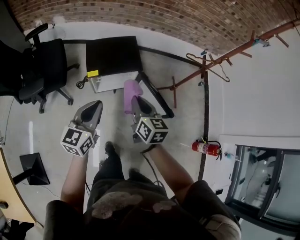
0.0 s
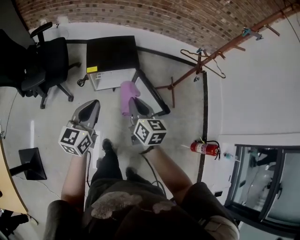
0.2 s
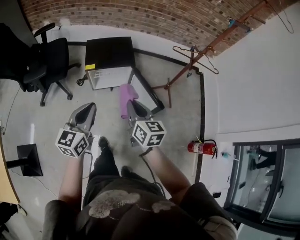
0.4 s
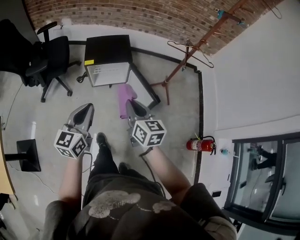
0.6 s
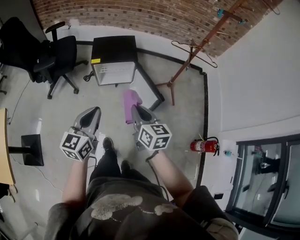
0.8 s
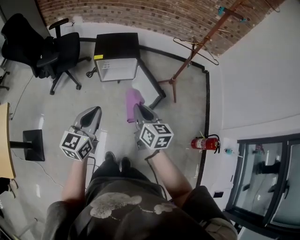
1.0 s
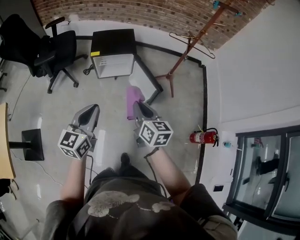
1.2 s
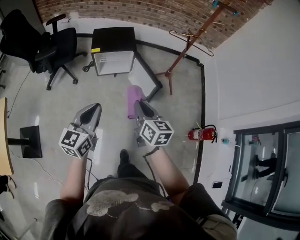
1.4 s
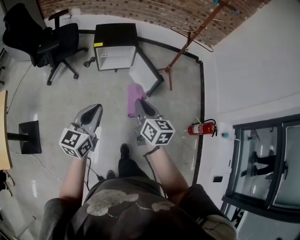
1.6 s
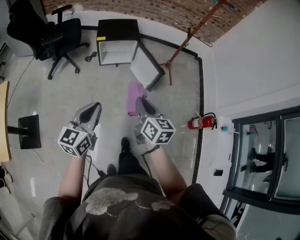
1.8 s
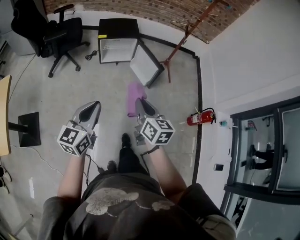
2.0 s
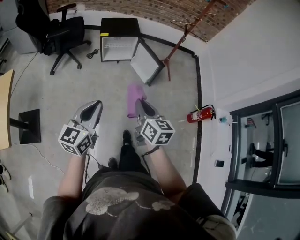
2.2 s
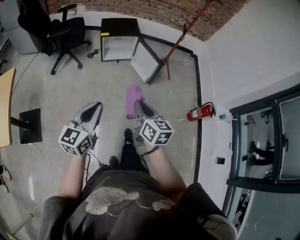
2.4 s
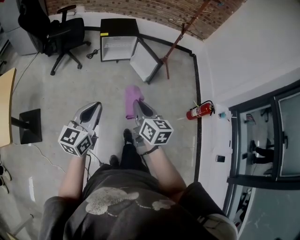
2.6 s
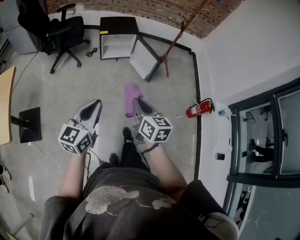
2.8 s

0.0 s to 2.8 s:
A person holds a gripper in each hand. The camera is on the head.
0.0 to 1.4 s: Both grippers move backward, roughly 30 cm.
1.4 to 2.8 s: The two grippers go some 25 cm backward.

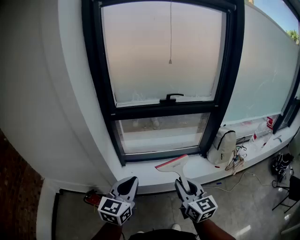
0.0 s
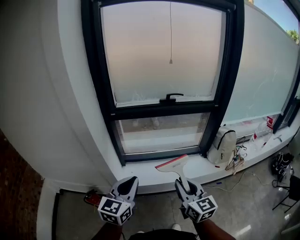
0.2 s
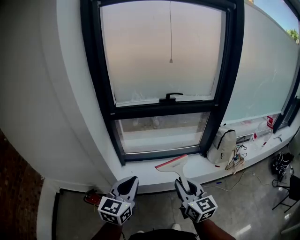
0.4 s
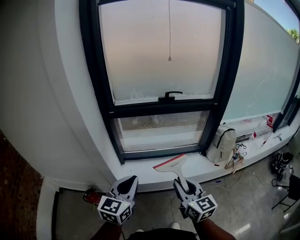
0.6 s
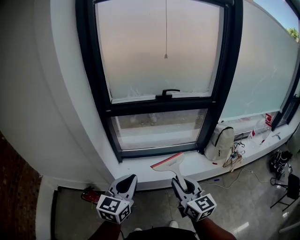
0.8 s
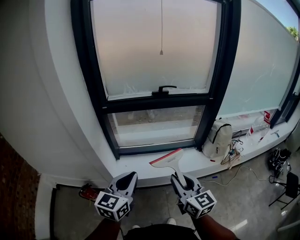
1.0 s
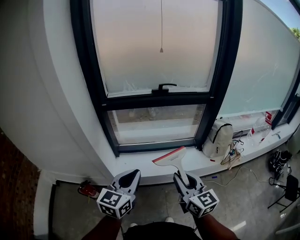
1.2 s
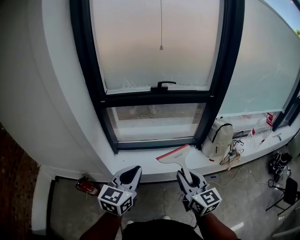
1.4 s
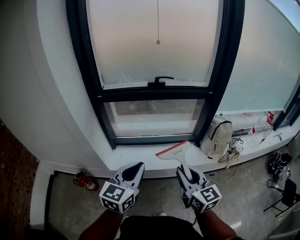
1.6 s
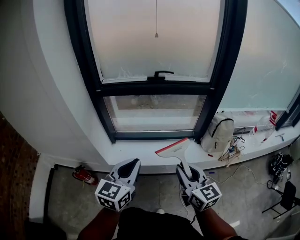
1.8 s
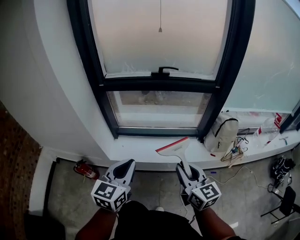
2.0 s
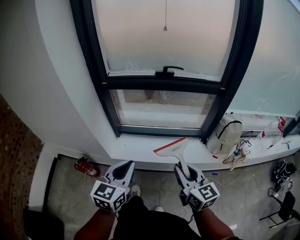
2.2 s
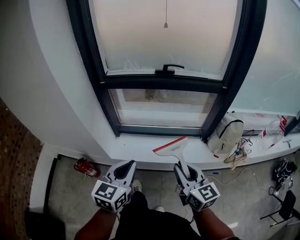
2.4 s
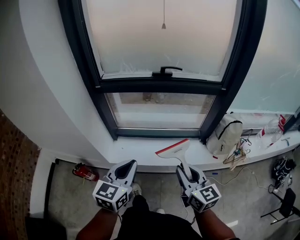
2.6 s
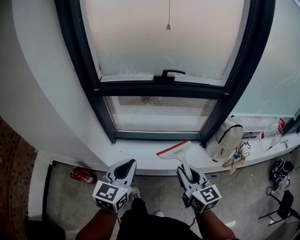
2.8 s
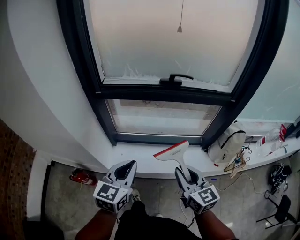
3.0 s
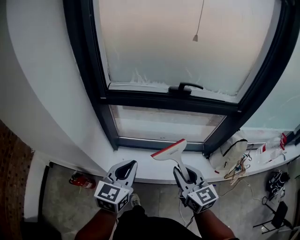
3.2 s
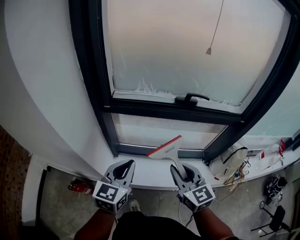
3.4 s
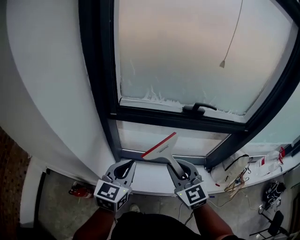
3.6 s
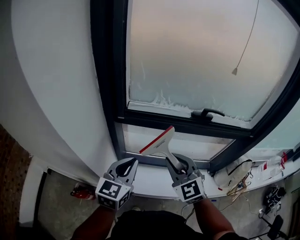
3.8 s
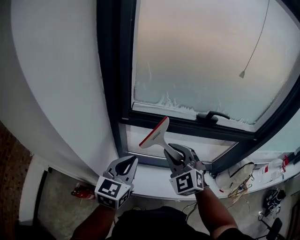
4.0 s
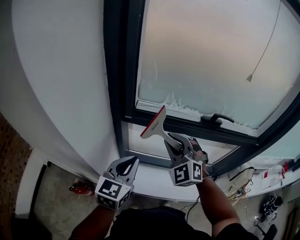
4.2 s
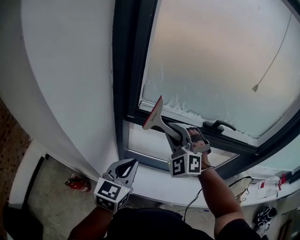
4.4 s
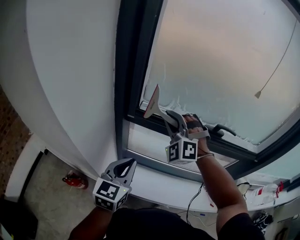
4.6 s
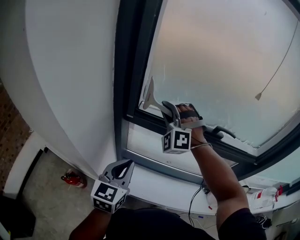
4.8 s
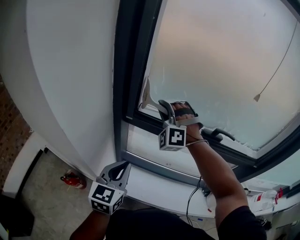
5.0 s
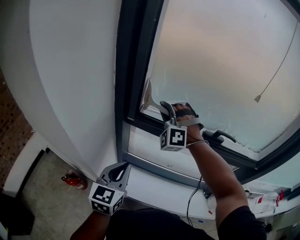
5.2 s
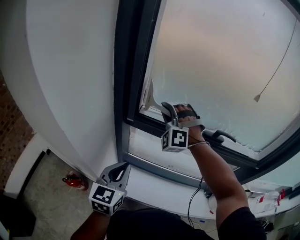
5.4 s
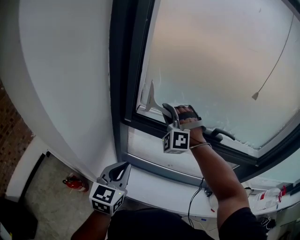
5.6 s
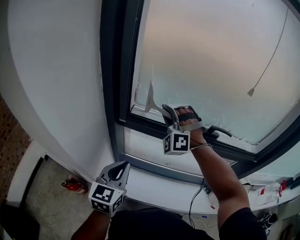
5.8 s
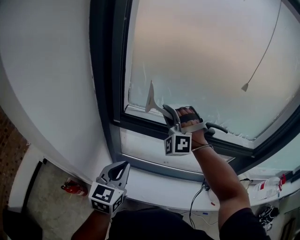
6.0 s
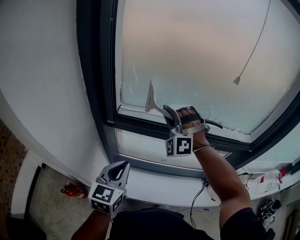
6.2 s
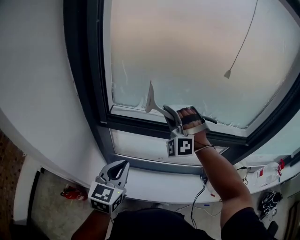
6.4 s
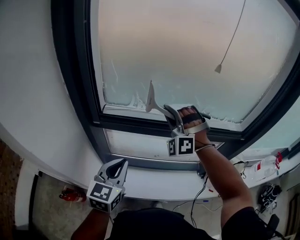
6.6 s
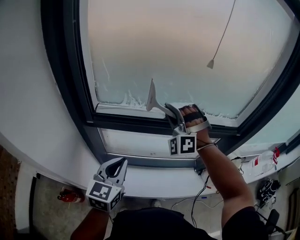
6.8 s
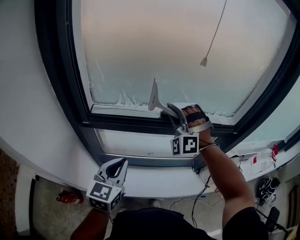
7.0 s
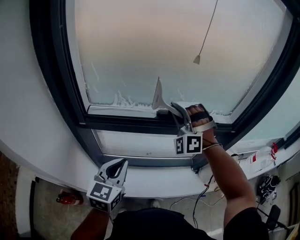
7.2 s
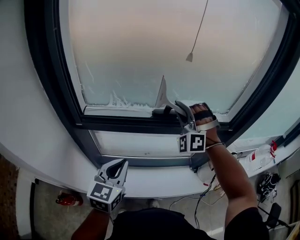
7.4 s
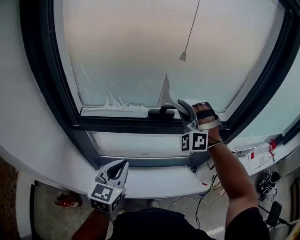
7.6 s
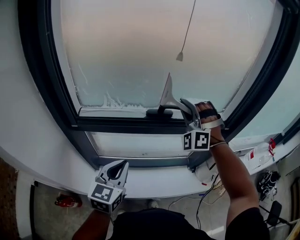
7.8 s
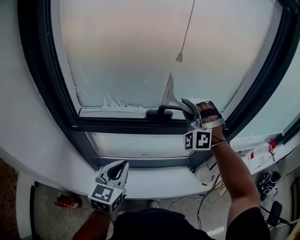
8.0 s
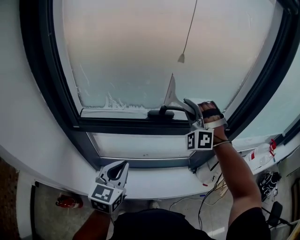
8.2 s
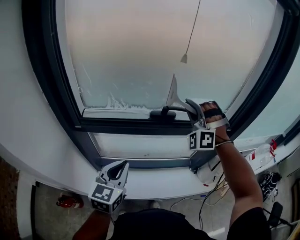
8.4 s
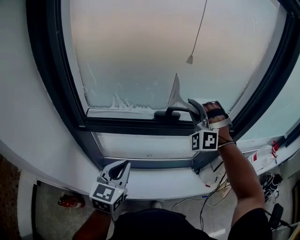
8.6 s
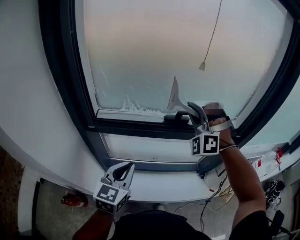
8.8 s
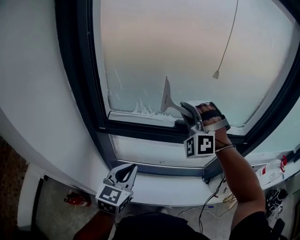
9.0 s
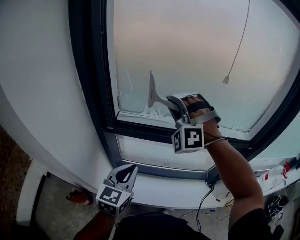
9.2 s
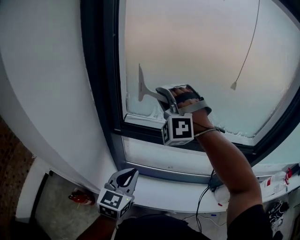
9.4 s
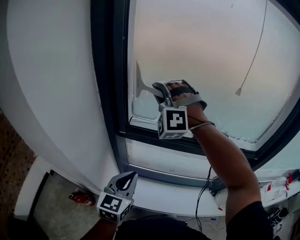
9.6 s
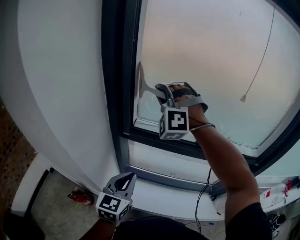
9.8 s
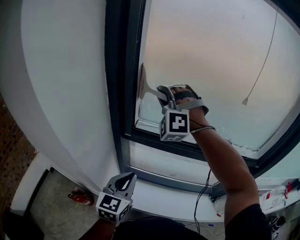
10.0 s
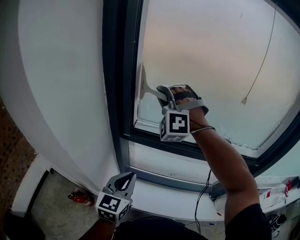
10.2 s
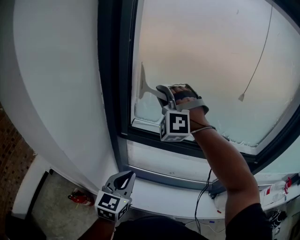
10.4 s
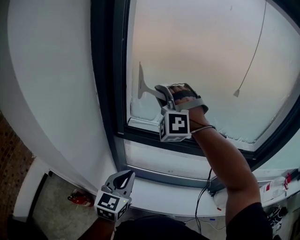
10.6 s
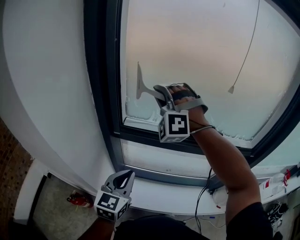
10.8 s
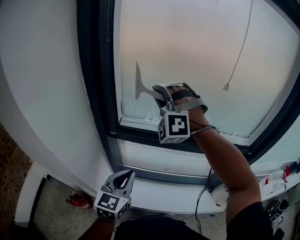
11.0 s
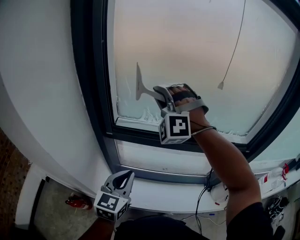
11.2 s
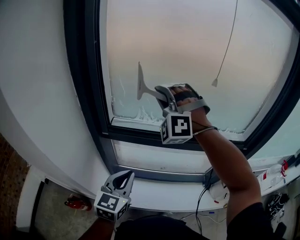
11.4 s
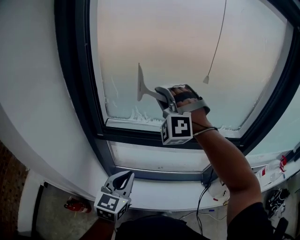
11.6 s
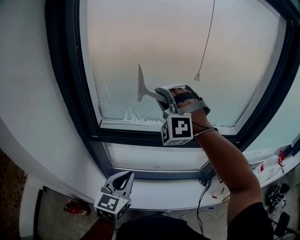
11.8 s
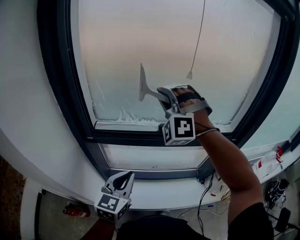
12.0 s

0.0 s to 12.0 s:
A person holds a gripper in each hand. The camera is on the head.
0.0 to 1.6 s: The left gripper changes place by about 15 cm.
1.6 to 3.0 s: The left gripper ends up about 15 cm from where it was.
3.0 to 4.4 s: The left gripper moves about 25 cm.
6.0 to 7.6 s: The left gripper changes place by about 15 cm.
7.6 to 9.0 s: The left gripper ends up about 5 cm from where it was.
9.0 to 10.4 s: The left gripper ends up roughly 10 cm from where it was.
10.4 to 12.0 s: The left gripper shifts by about 10 cm.

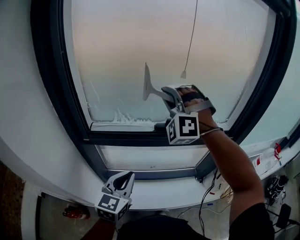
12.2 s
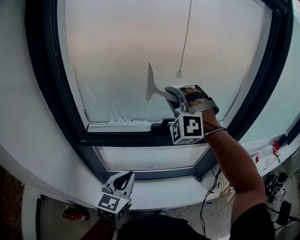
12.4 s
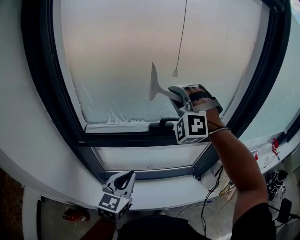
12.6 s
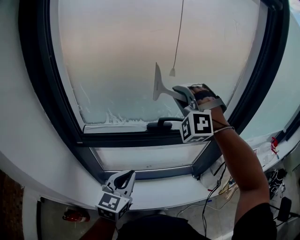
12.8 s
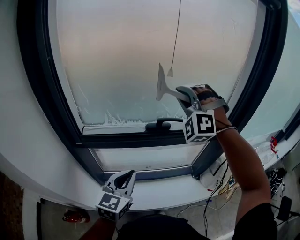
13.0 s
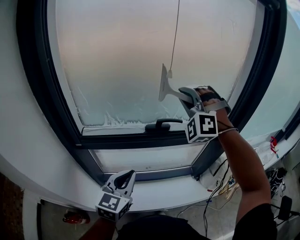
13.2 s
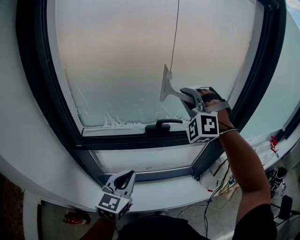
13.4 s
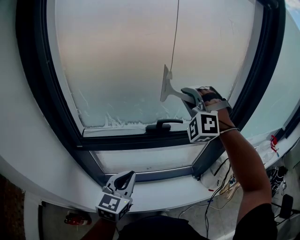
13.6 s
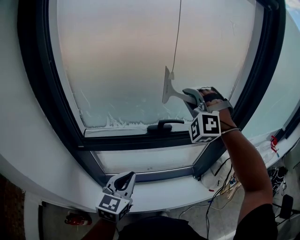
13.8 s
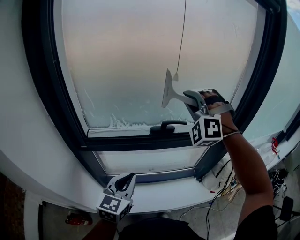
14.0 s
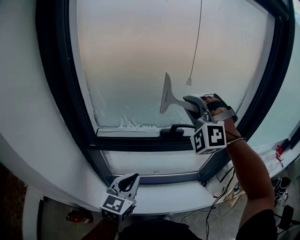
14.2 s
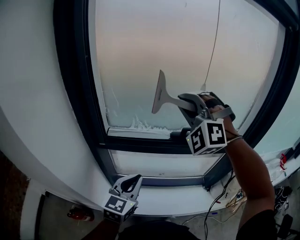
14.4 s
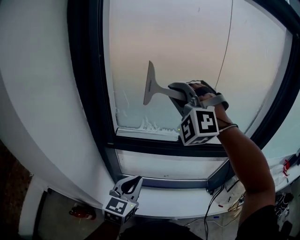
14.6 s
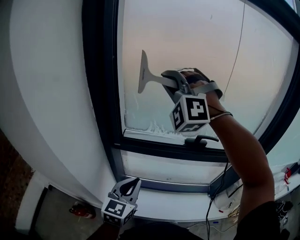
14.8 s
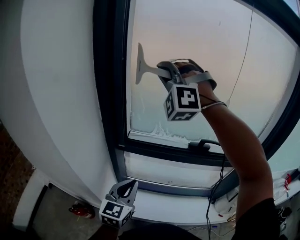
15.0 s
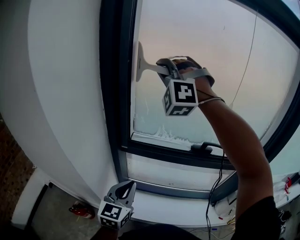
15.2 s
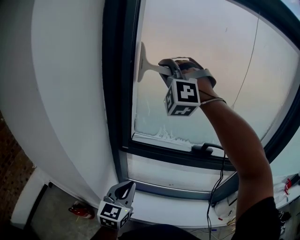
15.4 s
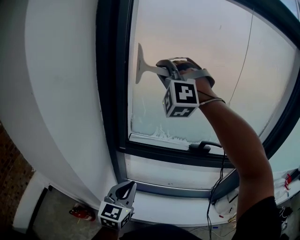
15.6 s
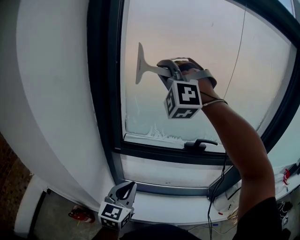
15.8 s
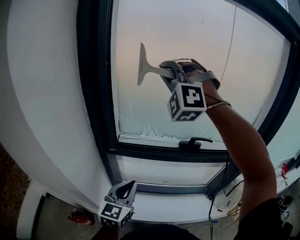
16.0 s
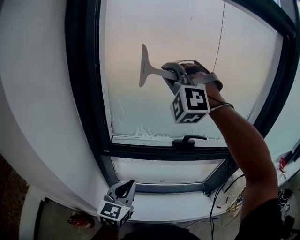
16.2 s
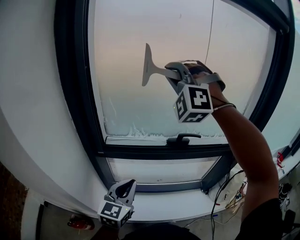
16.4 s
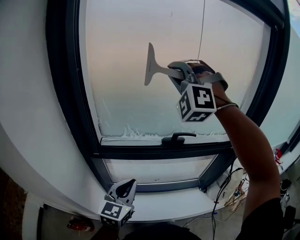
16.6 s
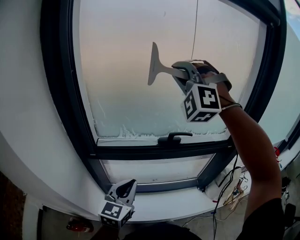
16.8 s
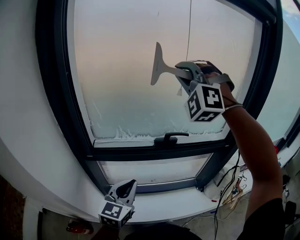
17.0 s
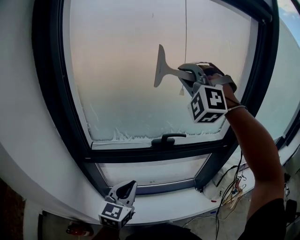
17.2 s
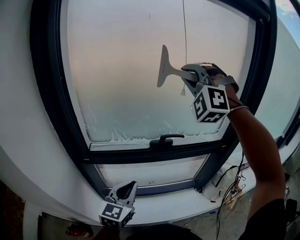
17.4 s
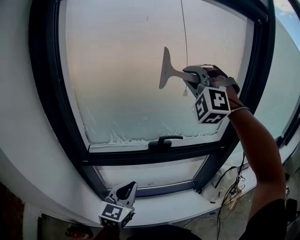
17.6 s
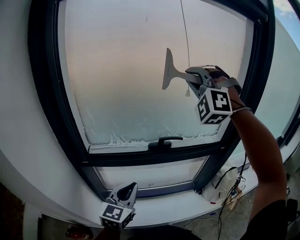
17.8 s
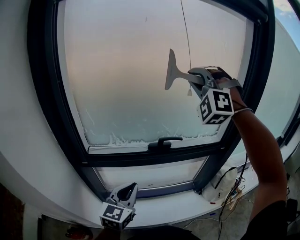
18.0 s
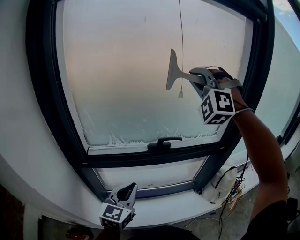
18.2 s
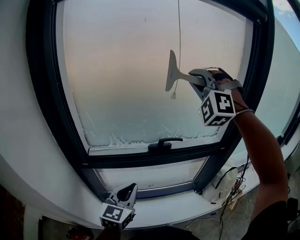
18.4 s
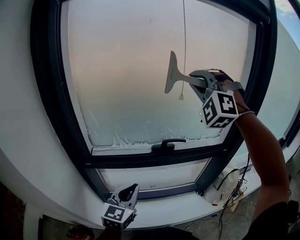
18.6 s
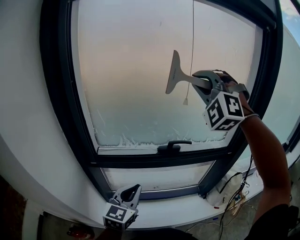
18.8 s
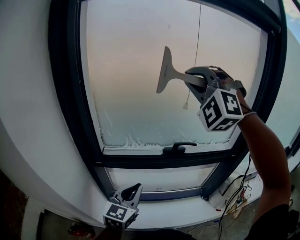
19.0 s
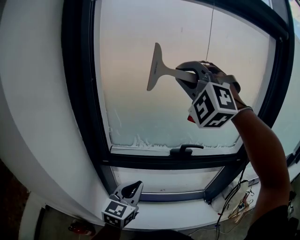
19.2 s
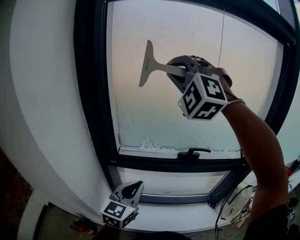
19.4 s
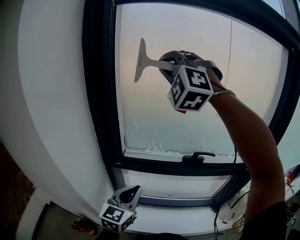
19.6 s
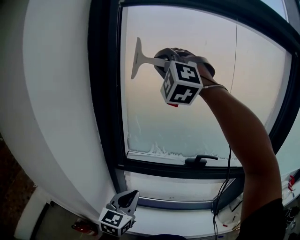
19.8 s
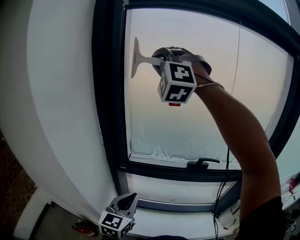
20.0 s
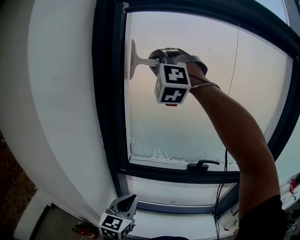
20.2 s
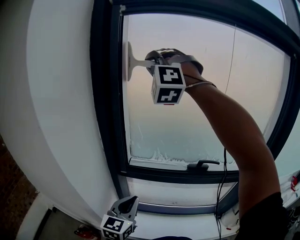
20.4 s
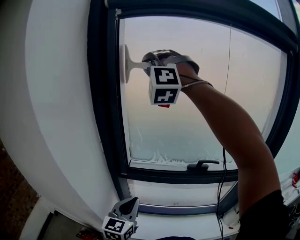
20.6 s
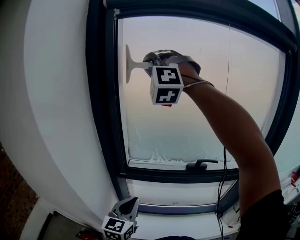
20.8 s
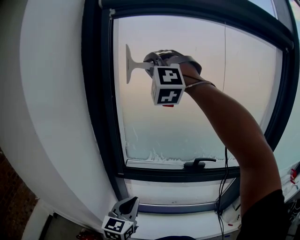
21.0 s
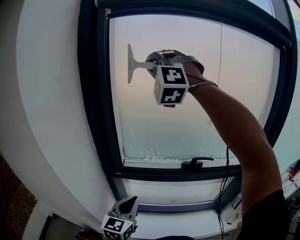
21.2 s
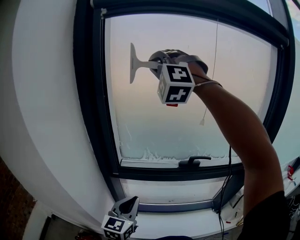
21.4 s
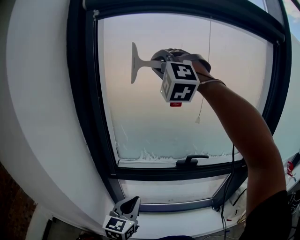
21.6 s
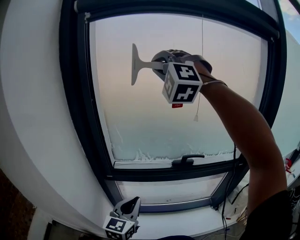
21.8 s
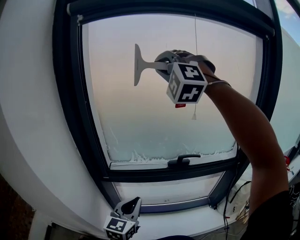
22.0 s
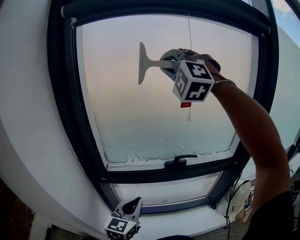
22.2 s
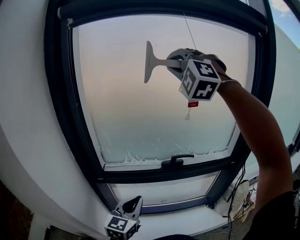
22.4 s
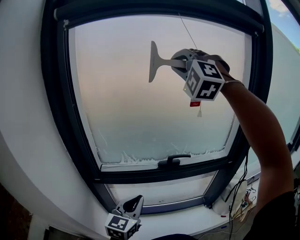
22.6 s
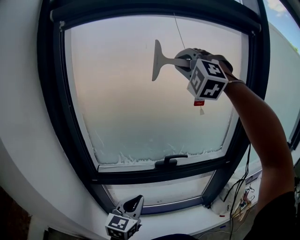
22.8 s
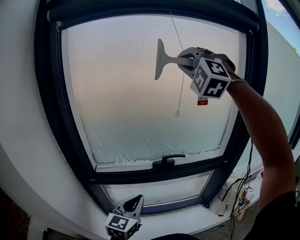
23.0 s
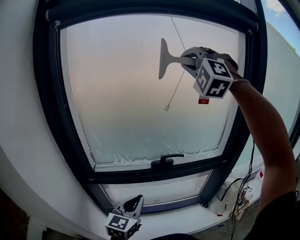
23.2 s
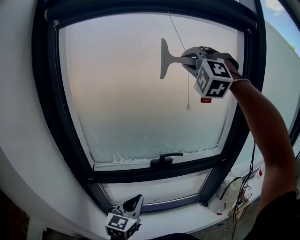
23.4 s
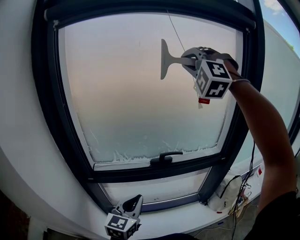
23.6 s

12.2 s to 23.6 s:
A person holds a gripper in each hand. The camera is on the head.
13.6 to 15.0 s: The left gripper changes place by some 15 cm.
15.0 to 16.4 s: The left gripper ends up about 5 cm from where it was.
16.4 to 17.8 s: The left gripper moves approximately 10 cm.
17.8 to 19.4 s: The left gripper ends up about 10 cm from where it was.
19.4 to 20.8 s: The left gripper moves about 5 cm.
20.8 to 22.2 s: The left gripper changes place by approximately 10 cm.
22.2 to 23.6 s: The left gripper shifts by roughly 5 cm.
